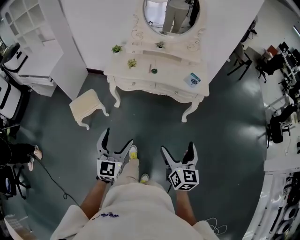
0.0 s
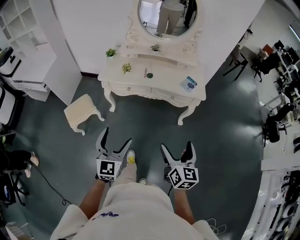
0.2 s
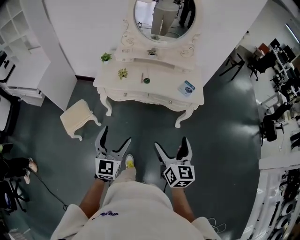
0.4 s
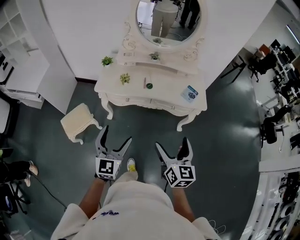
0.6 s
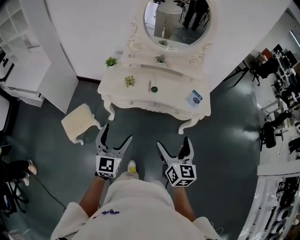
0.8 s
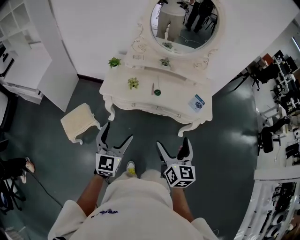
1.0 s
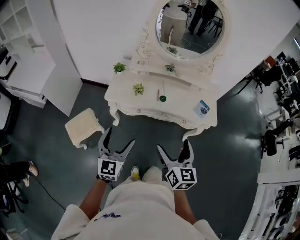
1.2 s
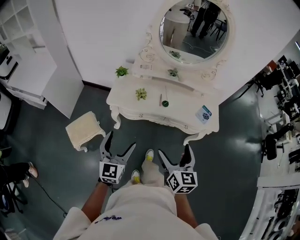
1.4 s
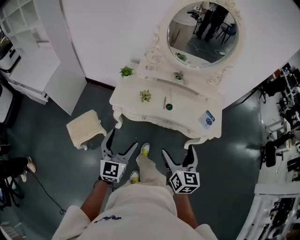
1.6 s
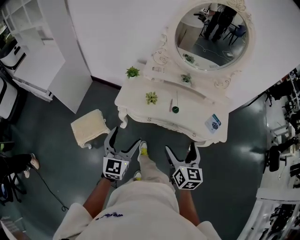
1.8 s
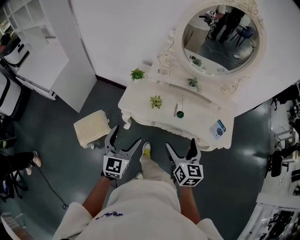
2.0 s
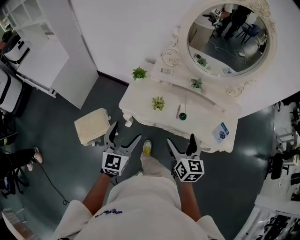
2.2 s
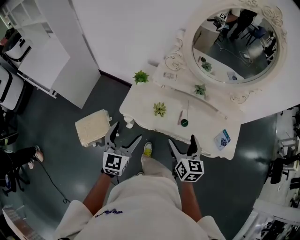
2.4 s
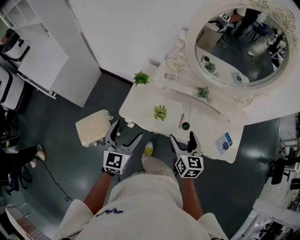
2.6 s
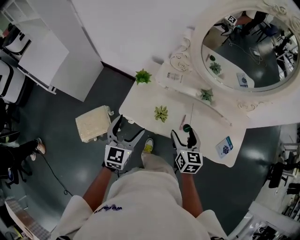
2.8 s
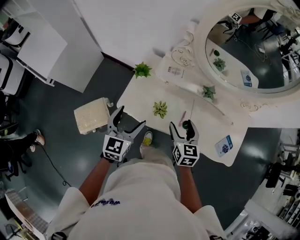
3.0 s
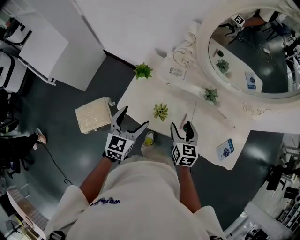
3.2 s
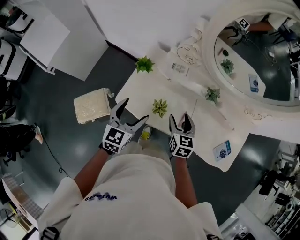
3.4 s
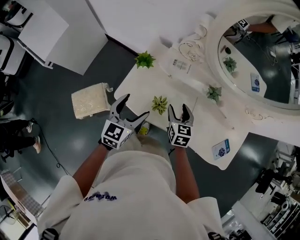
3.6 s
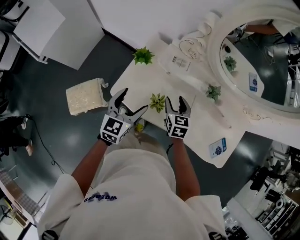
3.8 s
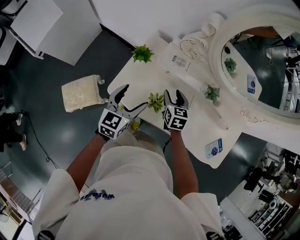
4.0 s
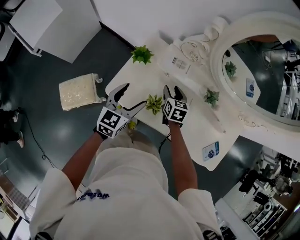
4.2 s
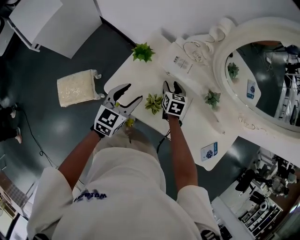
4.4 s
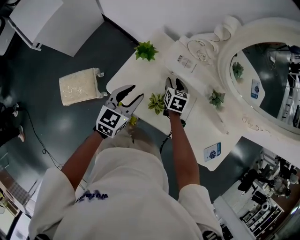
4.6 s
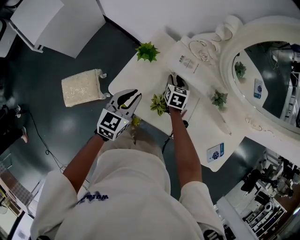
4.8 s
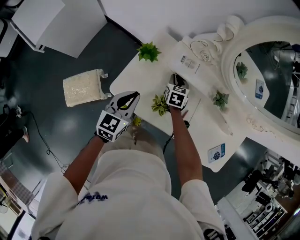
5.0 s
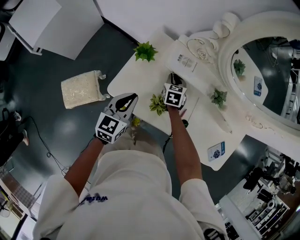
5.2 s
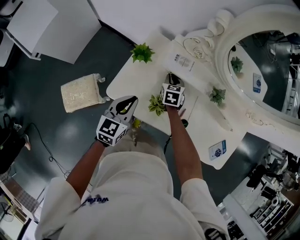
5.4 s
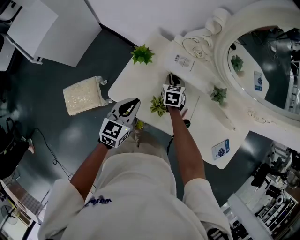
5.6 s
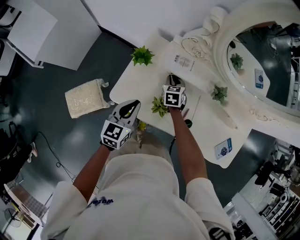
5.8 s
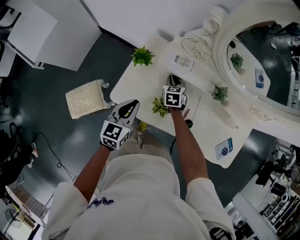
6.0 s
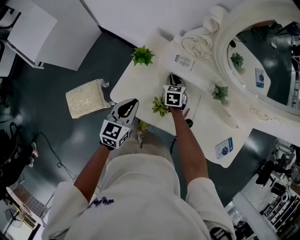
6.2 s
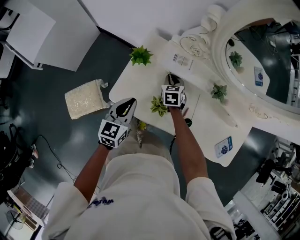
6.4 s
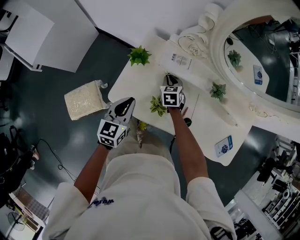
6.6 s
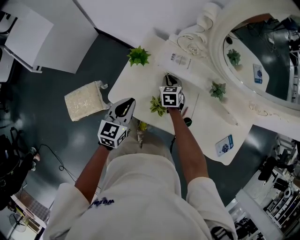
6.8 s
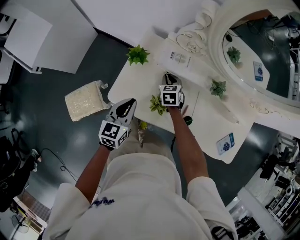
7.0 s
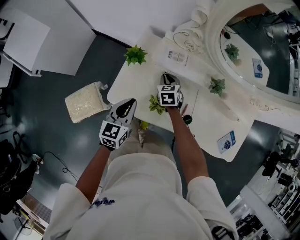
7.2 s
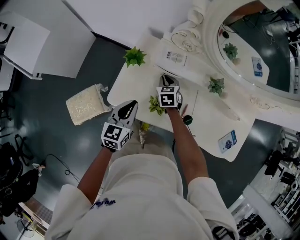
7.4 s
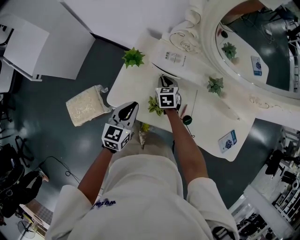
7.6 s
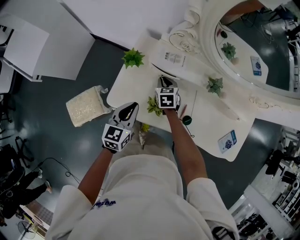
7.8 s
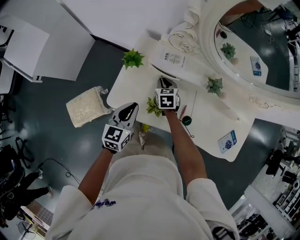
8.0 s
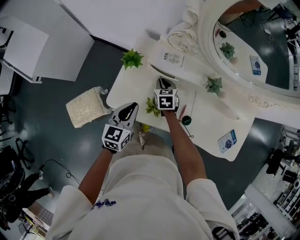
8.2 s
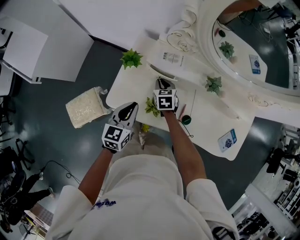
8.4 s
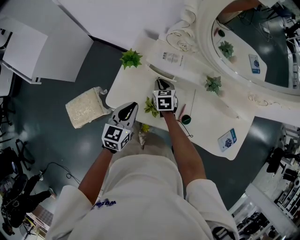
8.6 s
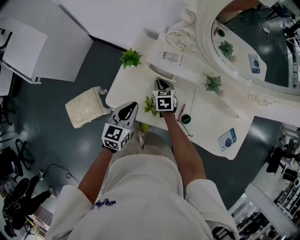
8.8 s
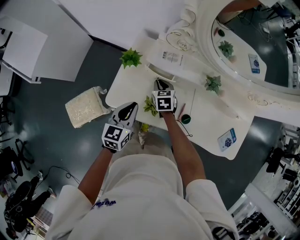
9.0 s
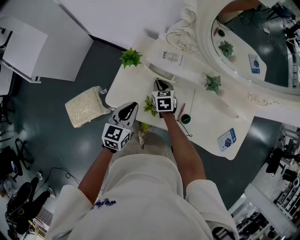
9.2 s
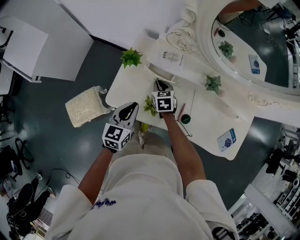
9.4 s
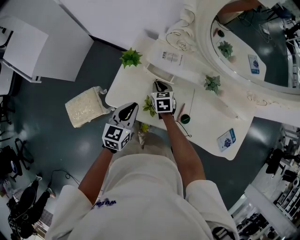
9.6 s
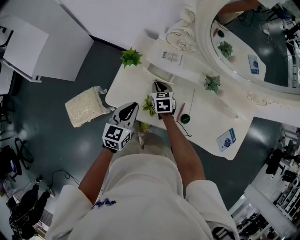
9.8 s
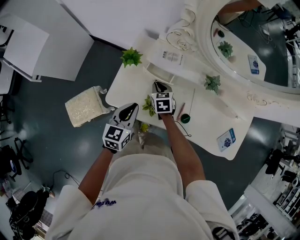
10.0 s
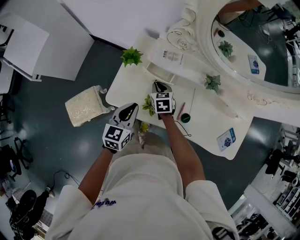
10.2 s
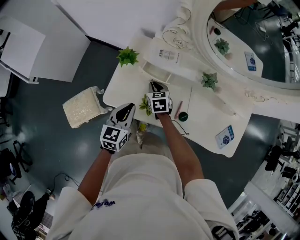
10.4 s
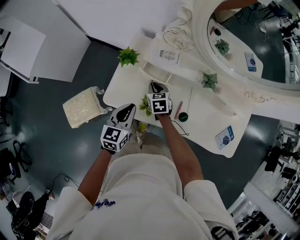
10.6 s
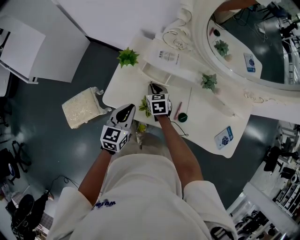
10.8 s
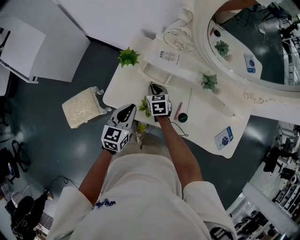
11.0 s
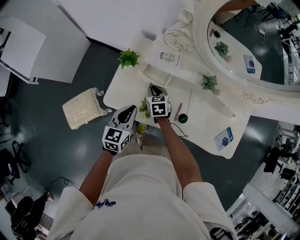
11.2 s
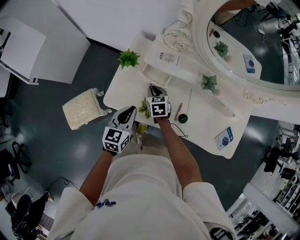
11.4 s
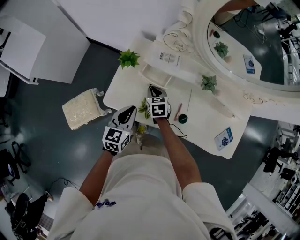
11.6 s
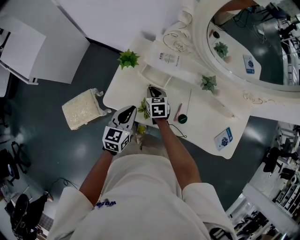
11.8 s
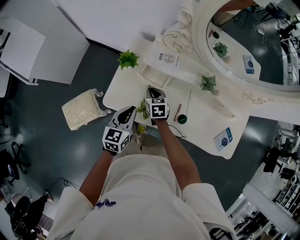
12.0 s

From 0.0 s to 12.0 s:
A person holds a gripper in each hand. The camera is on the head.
From 0.0 s to 1.6 s: Both grippers travel together forward and to the left, about 35 cm.
From 1.6 s to 3.0 s: The right gripper shifts approximately 35 cm forward and downward, and closes up, while the left gripper goes about 30 cm forward.
From 3.0 s to 4.4 s: The left gripper is displaced downward and forward by approximately 15 cm, and closes its fingers. The right gripper is displaced forward and downward by some 25 cm.
From 4.4 s to 6.0 s: The left gripper closes up.
From 6.0 s to 9.0 s: The grippers move only a little.
From 9.0 s to 12.0 s: The grippers move only a little.

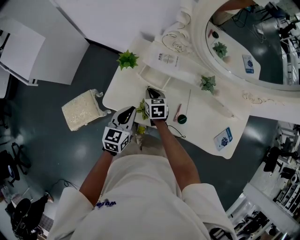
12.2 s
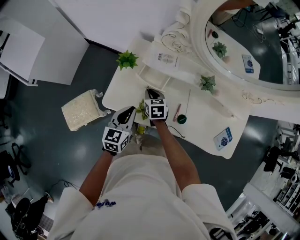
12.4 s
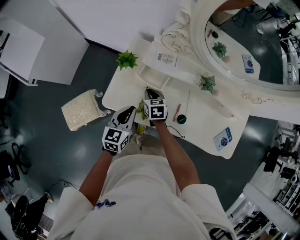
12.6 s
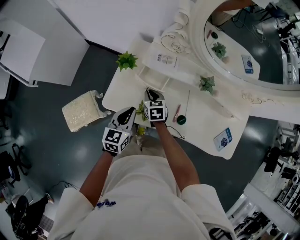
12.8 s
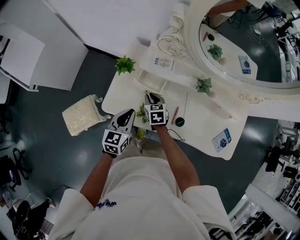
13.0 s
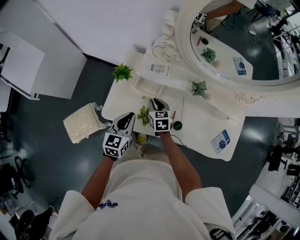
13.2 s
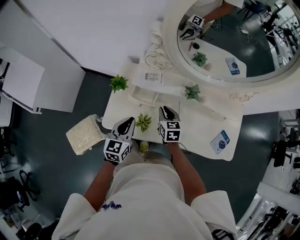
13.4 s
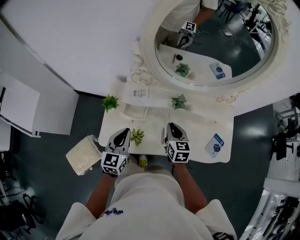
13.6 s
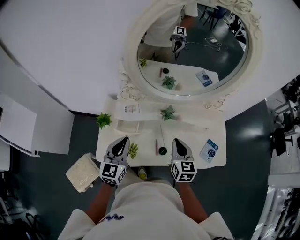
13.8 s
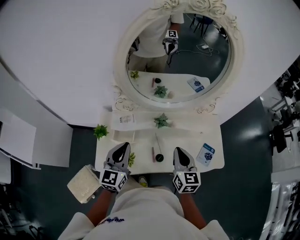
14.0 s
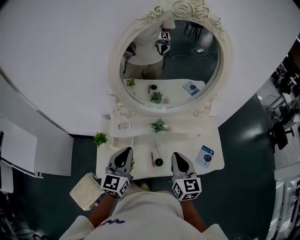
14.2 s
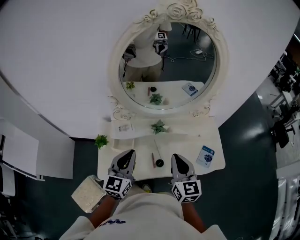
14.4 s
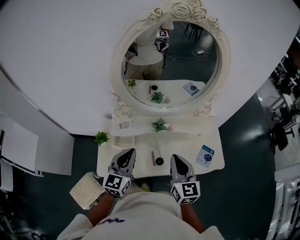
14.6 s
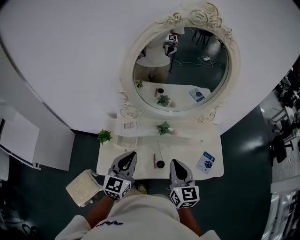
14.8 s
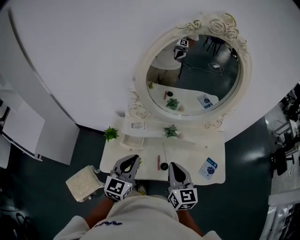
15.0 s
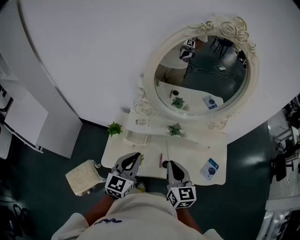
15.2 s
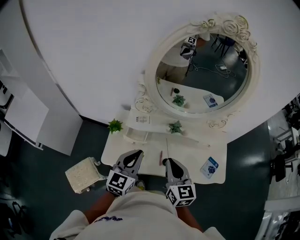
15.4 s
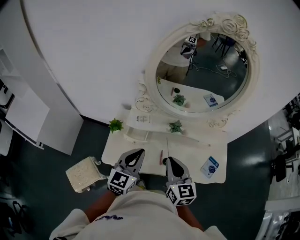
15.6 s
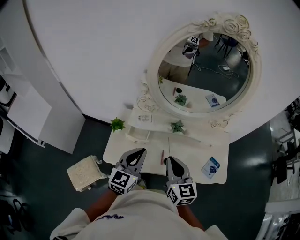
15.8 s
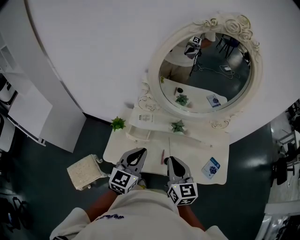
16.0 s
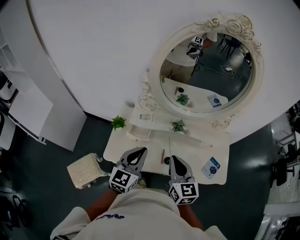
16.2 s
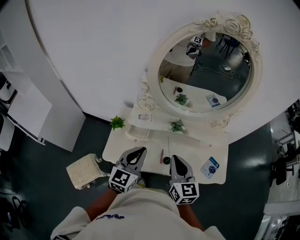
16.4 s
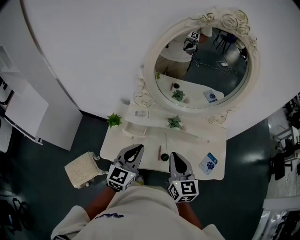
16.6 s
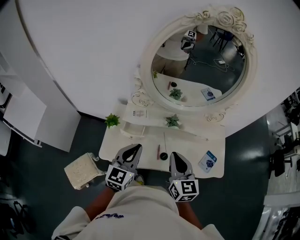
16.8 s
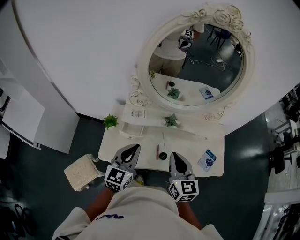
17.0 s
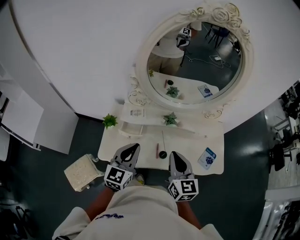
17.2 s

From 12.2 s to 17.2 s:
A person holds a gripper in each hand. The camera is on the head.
From 12.2 s to 13.8 s: The right gripper is displaced to the right and upward by roughly 35 cm, and swivels about 40 degrees. The left gripper is displaced upward and to the right by approximately 20 cm, and changes its angle by about 20 degrees.
From 13.8 s to 15.6 s: The right gripper moves upward, backward and to the left, about 15 cm. Meanwhile the left gripper shifts approximately 10 cm upward and backward.
From 15.6 s to 17.2 s: The grippers stay close to where they were, moving slightly.

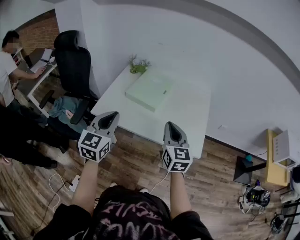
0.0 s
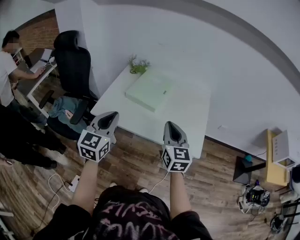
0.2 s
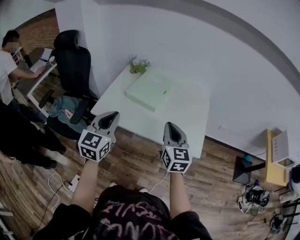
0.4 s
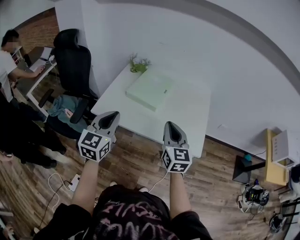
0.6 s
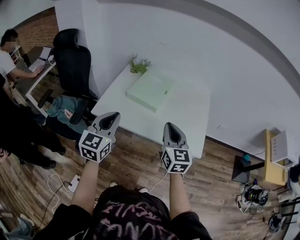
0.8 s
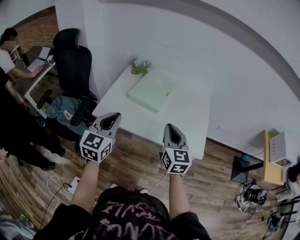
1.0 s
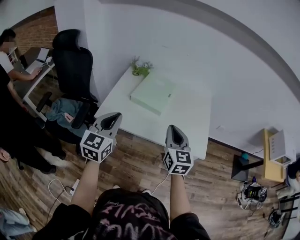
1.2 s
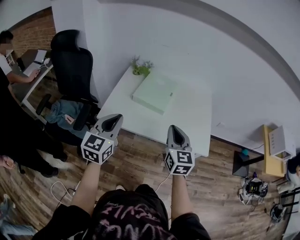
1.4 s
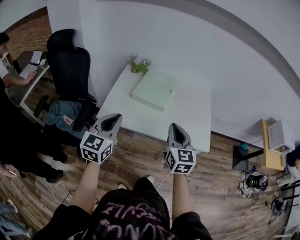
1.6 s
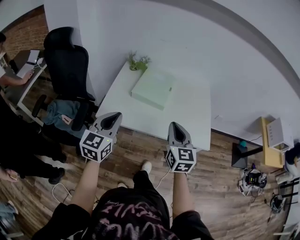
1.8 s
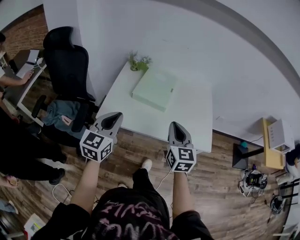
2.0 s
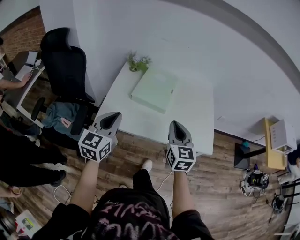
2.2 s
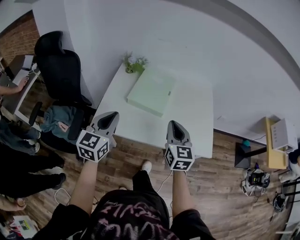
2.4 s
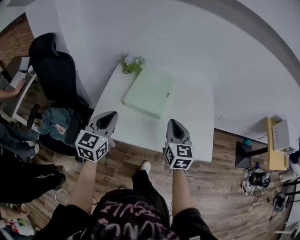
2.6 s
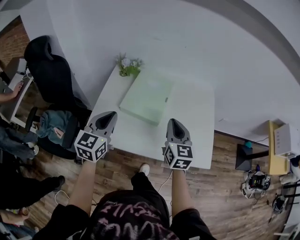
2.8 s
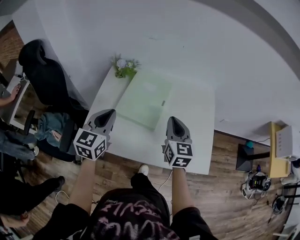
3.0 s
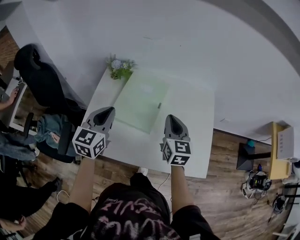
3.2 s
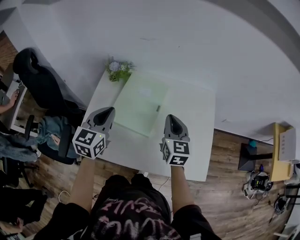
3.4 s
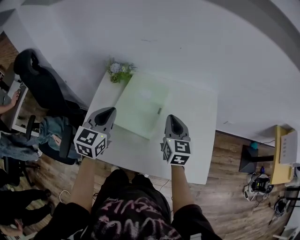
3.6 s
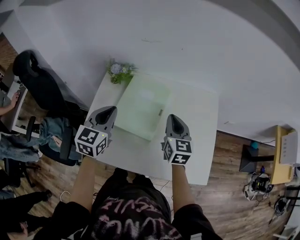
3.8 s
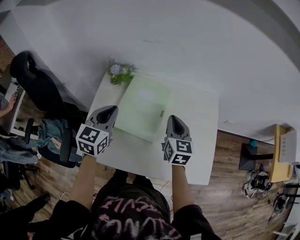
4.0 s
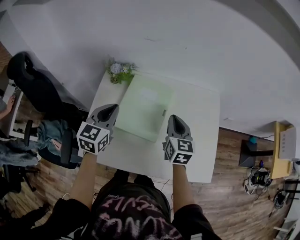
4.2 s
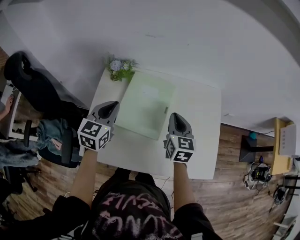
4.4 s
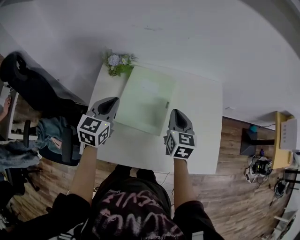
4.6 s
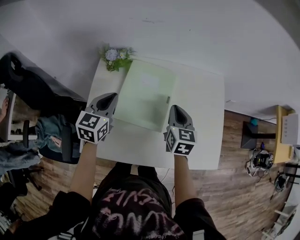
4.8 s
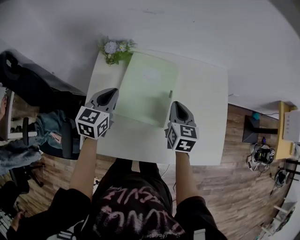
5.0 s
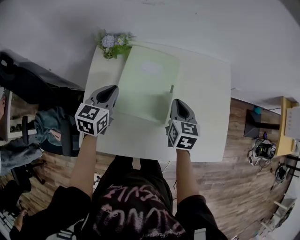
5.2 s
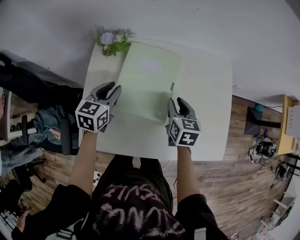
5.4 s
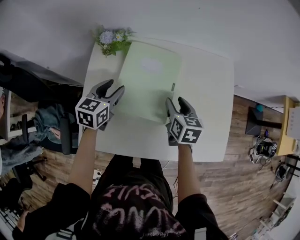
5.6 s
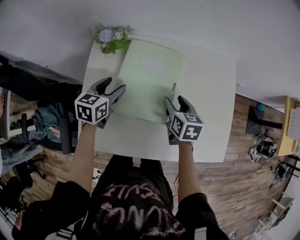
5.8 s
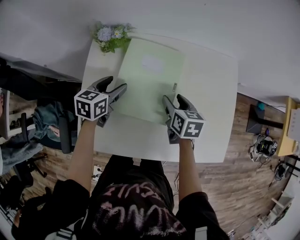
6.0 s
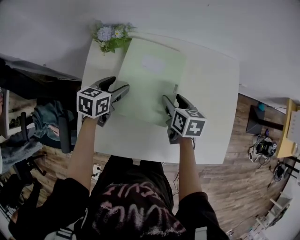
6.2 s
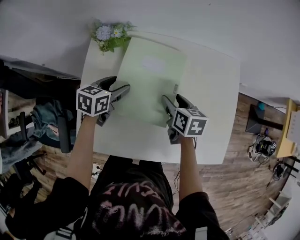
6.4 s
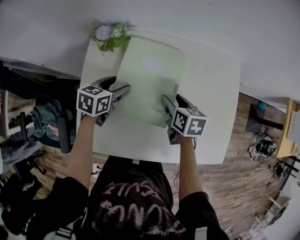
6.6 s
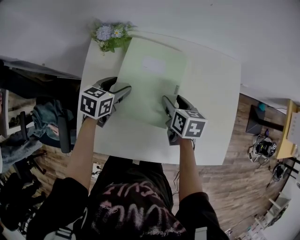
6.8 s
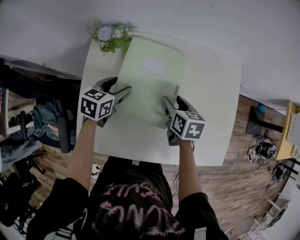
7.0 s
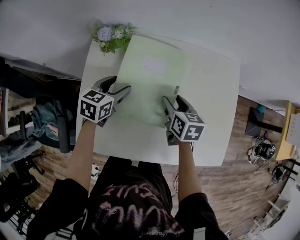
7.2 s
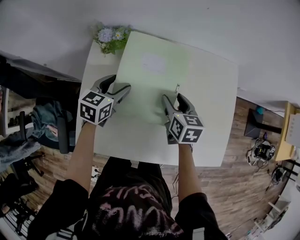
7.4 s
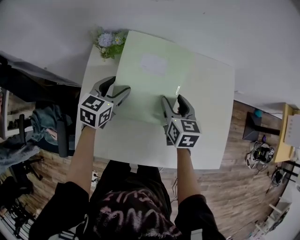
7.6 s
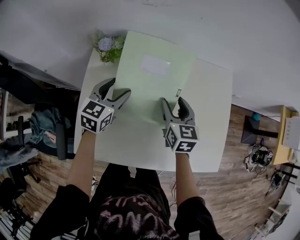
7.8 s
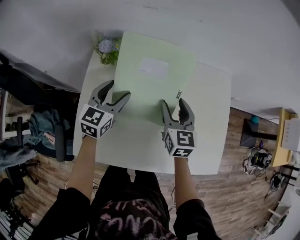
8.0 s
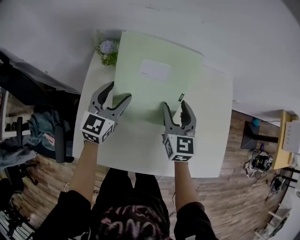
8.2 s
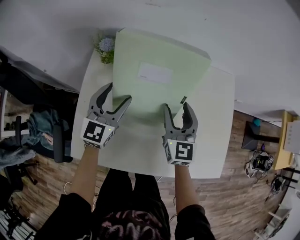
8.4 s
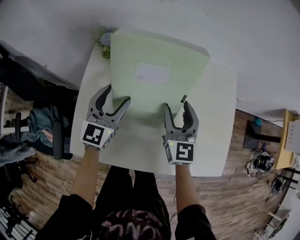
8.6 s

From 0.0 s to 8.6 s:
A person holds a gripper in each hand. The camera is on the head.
From 0.0 s to 1.4 s: The grippers both shift to the left by about 10 cm.
From 1.4 s to 2.8 s: Both grippers move forward, approximately 20 cm.
From 2.8 s to 4.4 s: The two grippers go some 15 cm forward.
From 4.4 s to 5.8 s: The grippers both shift downward by some 15 cm. The right gripper swivels roughly 30 degrees, and opens up; the left gripper changes its angle by approximately 20 degrees, and opens.
From 5.8 s to 7.2 s: There are only small adjustments of the grippers.
From 7.2 s to 8.6 s: The two grippers go roughly 10 cm upward. The right gripper tilts its fingers some 30 degrees upward. Meanwhile the left gripper points its fingers some 30 degrees further upward.
